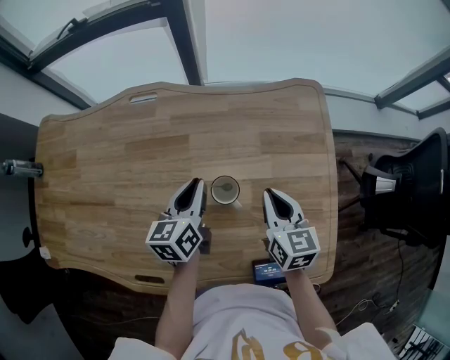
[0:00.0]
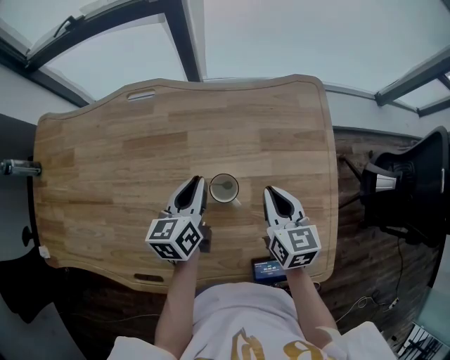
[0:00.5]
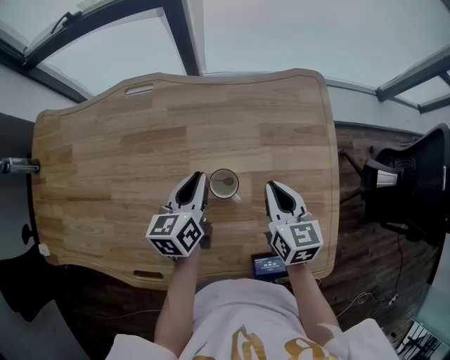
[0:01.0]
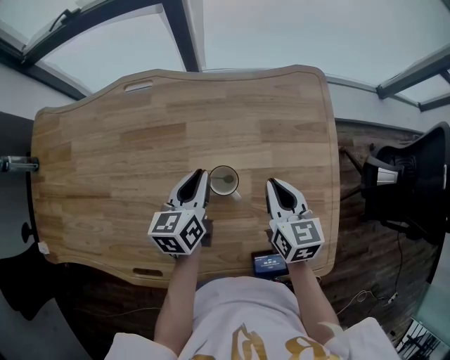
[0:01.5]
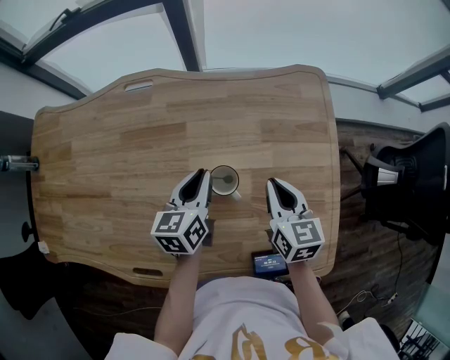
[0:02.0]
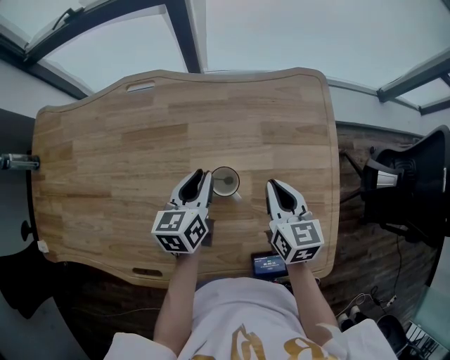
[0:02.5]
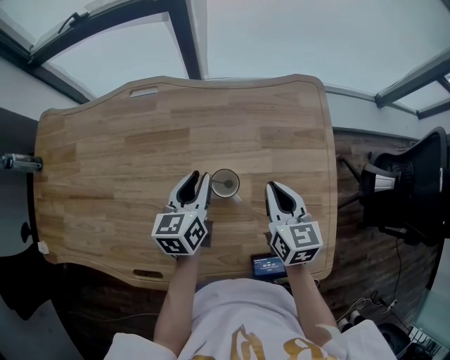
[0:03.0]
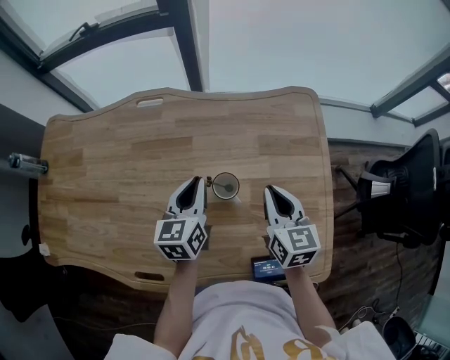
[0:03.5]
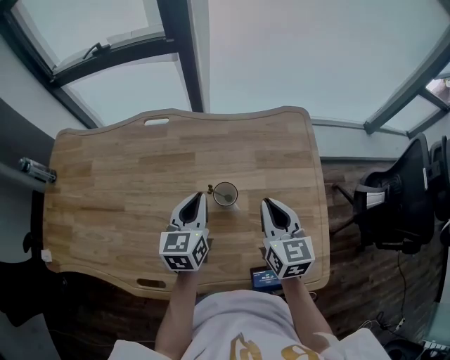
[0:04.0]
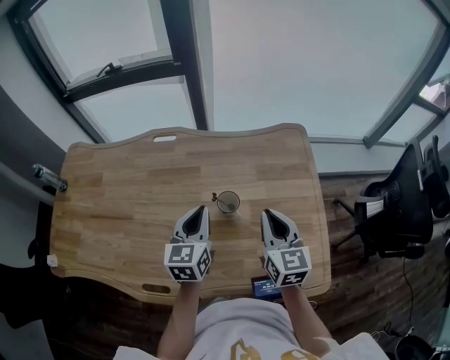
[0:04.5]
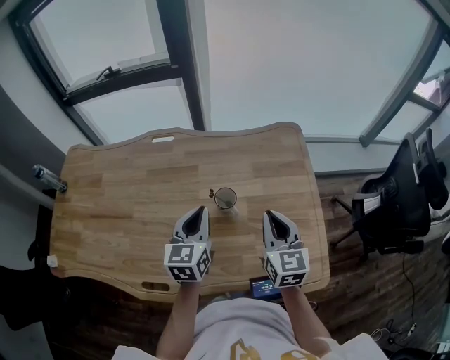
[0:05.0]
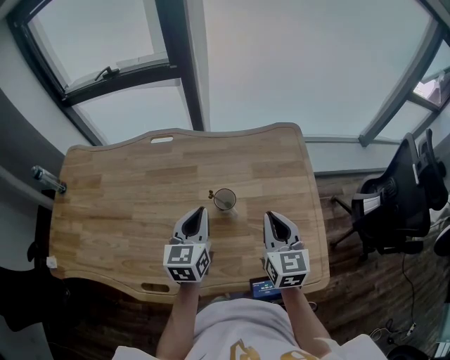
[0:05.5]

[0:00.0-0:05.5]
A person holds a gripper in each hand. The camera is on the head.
0:00.0 to 0:02.0: The grippers stay close to where they were, moving slightly.
0:02.0 to 0:03.5: The left gripper changes place by roughly 5 cm, while the right gripper ends up some 5 cm from where it was.
0:03.5 to 0:05.5: Both grippers travel together backward and upward, approximately 10 cm.

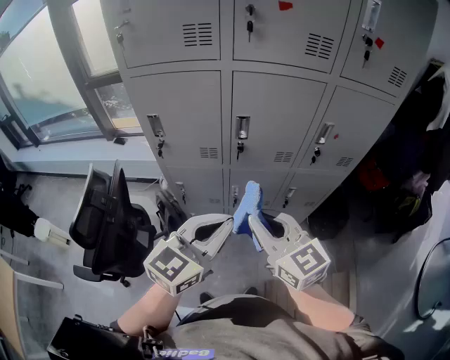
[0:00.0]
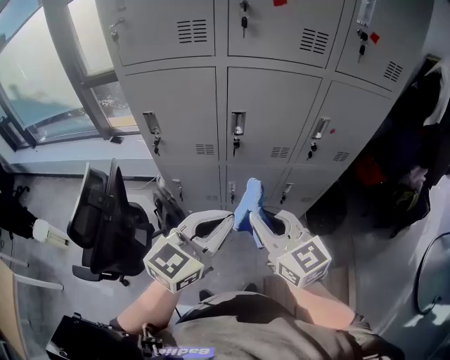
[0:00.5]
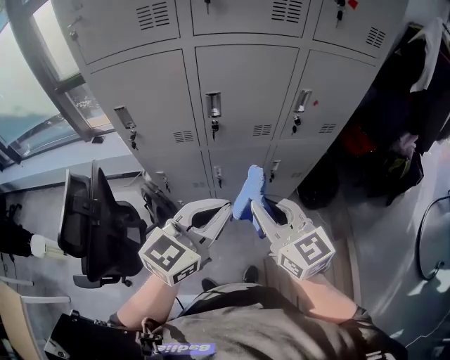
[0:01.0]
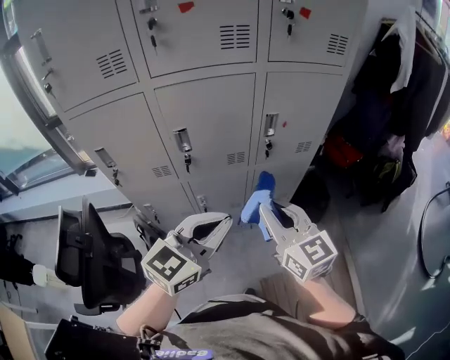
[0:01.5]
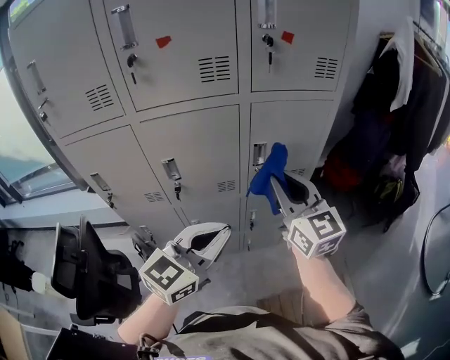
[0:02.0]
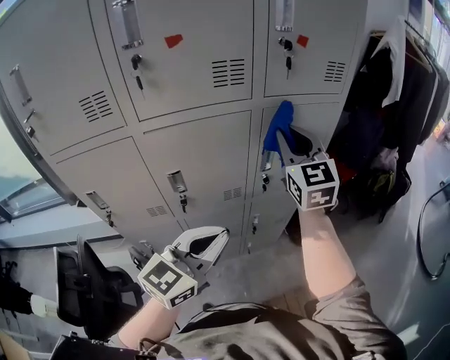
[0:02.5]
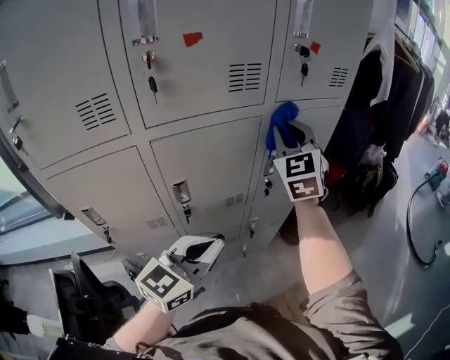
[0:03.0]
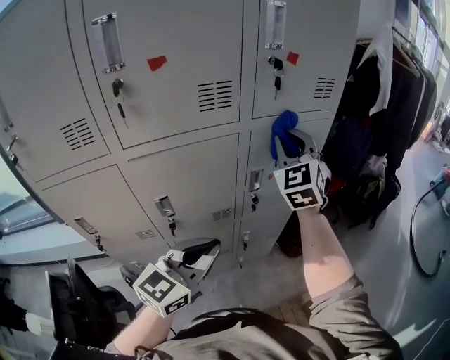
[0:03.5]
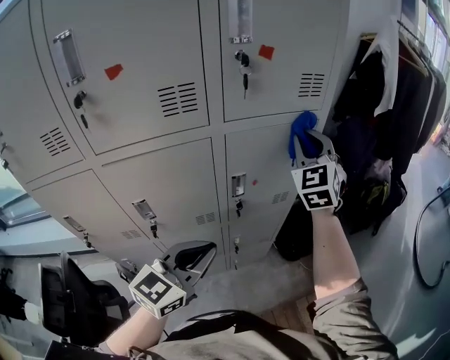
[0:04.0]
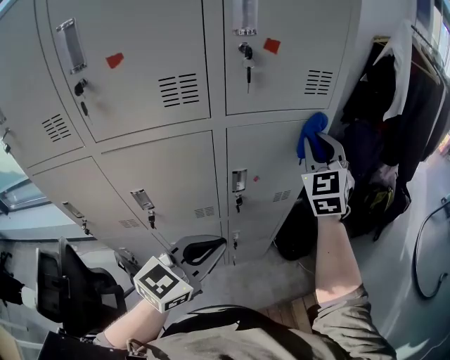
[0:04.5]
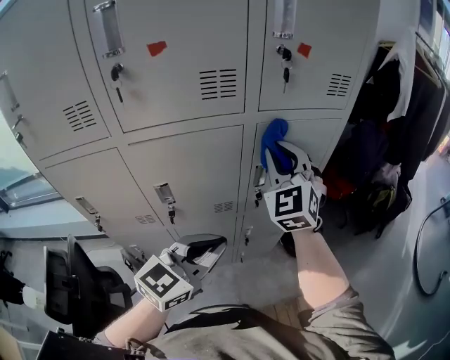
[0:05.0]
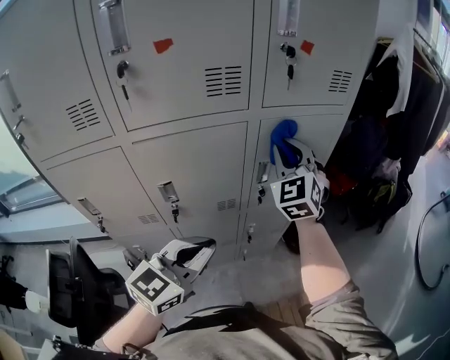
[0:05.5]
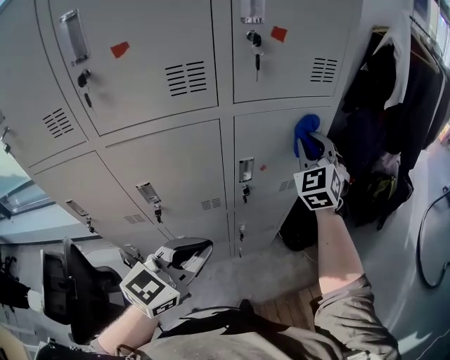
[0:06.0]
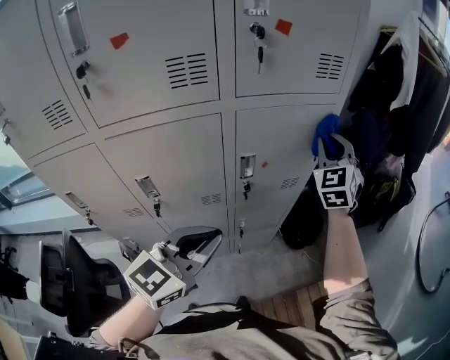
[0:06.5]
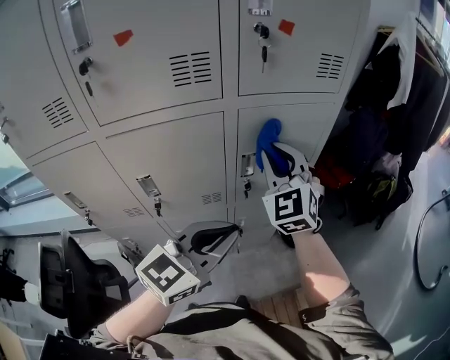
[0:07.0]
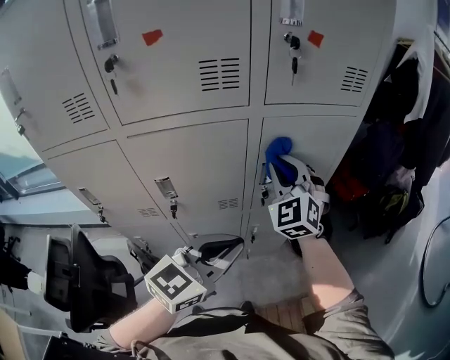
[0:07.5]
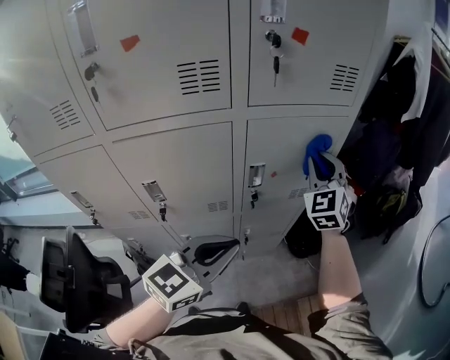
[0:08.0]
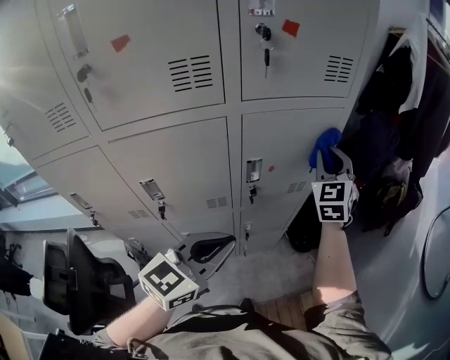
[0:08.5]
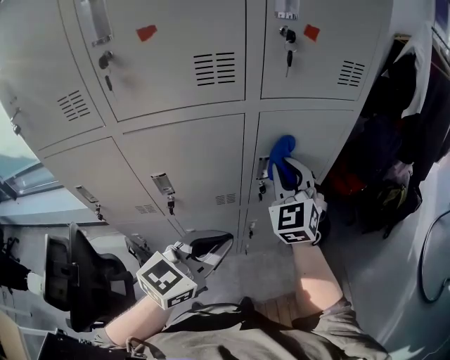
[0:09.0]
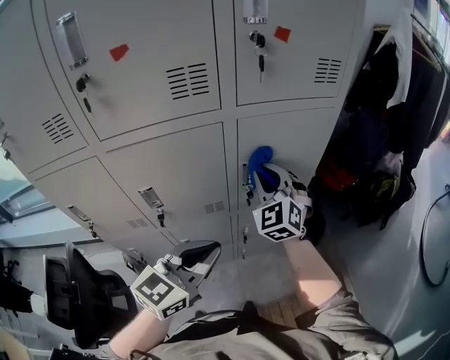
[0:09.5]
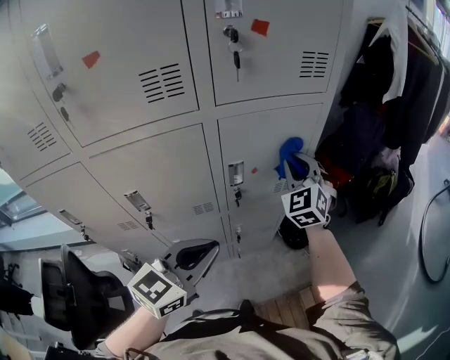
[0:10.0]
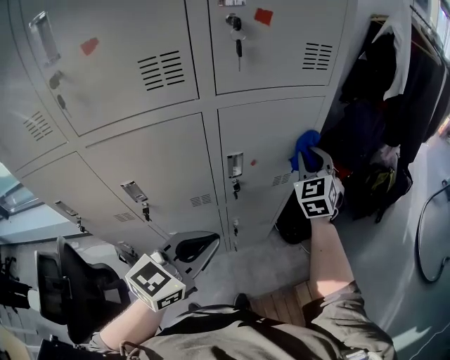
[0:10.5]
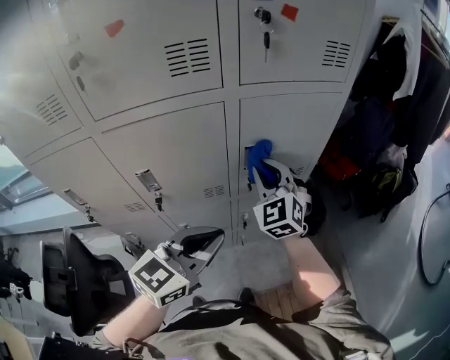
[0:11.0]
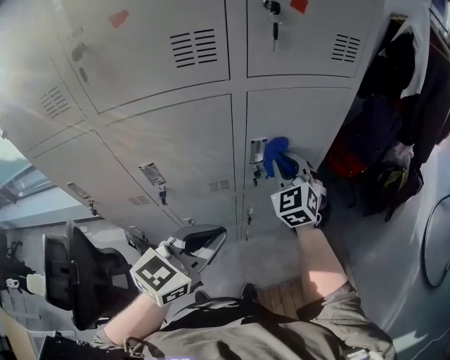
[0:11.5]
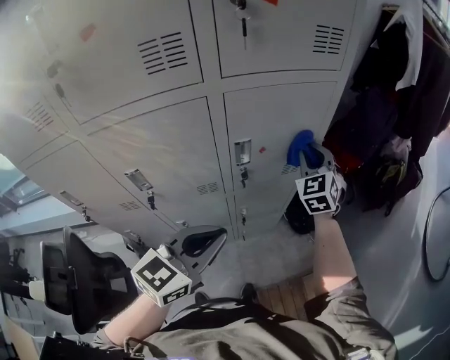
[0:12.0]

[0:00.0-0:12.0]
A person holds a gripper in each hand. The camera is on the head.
0:00.0 to 0:02.0: The right gripper goes approximately 30 cm to the right, forward and upward, and changes its angle by approximately 30 degrees. Meanwhile the left gripper moves to the right and forward, approximately 20 cm.
0:02.0 to 0:04.0: The right gripper shifts some 20 cm forward, and changes its angle by approximately 50 degrees, while the left gripper travels forward by about 10 cm, and moves roughly 10 cm to the left and comes back.
0:04.0 to 0:06.0: The left gripper moves some 5 cm to the left and comes back, while the right gripper shifts roughly 5 cm downward, and travels to the left and back again, approximately 10 cm each way.
0:06.0 to 0:08.0: The right gripper moves left and right over roughly 15 cm, changing direction 2 times. Meanwhile the left gripper moves about 5 cm.
0:08.0 to 0:10.0: The right gripper moves some 10 cm to the left and comes back.
0:10.0 to 0:12.0: The right gripper goes left and right, about 15 cm each way, reversing 2 times.

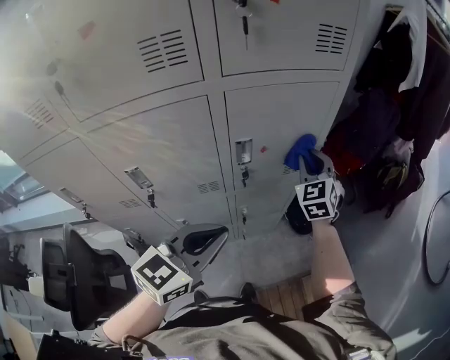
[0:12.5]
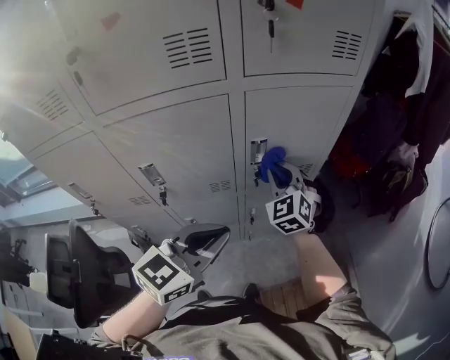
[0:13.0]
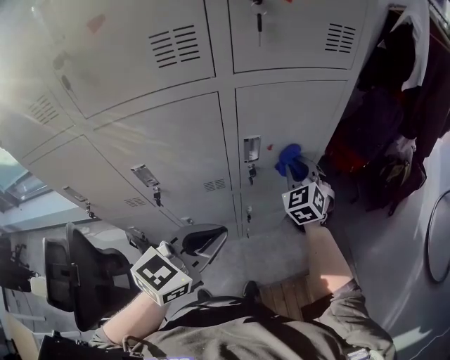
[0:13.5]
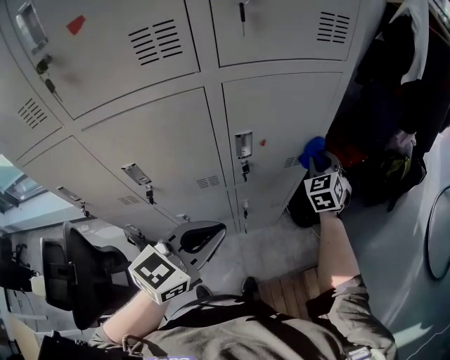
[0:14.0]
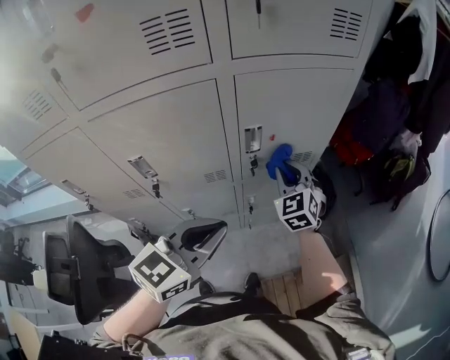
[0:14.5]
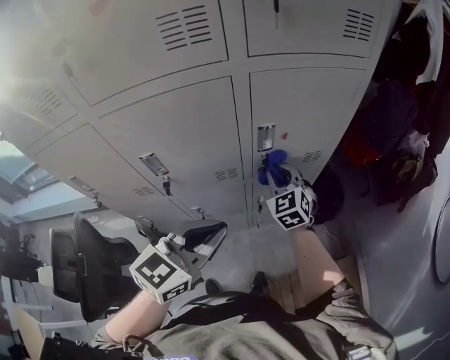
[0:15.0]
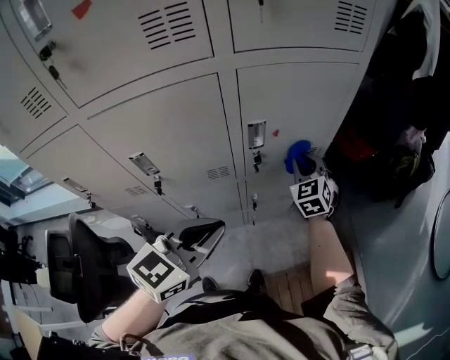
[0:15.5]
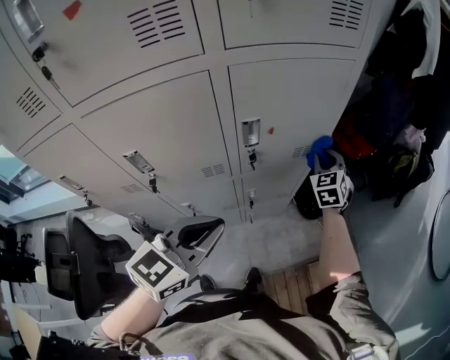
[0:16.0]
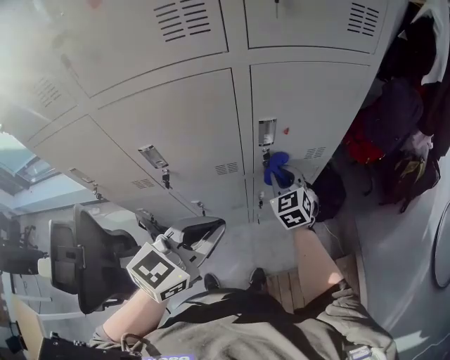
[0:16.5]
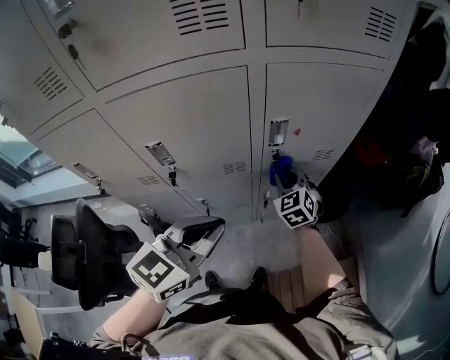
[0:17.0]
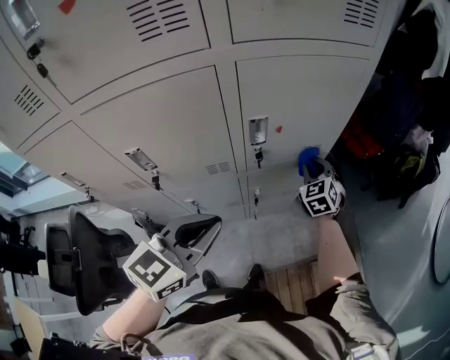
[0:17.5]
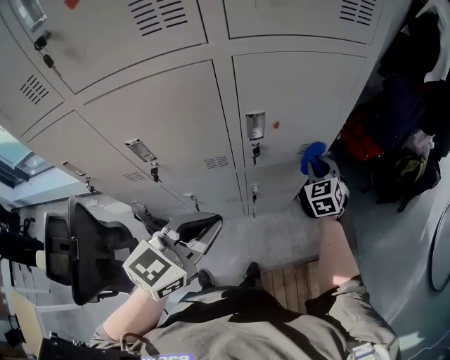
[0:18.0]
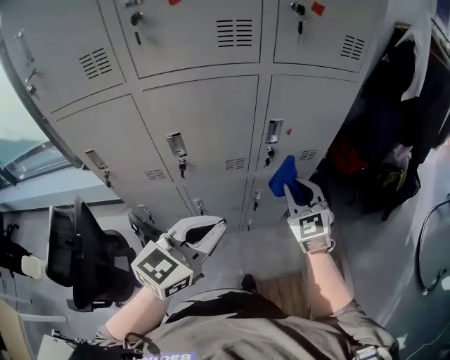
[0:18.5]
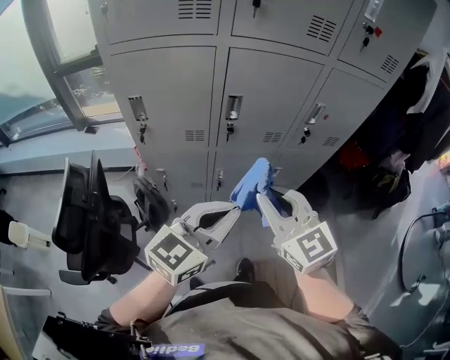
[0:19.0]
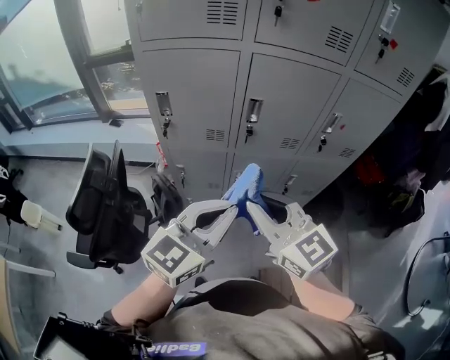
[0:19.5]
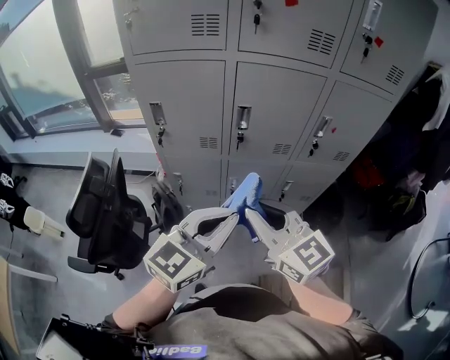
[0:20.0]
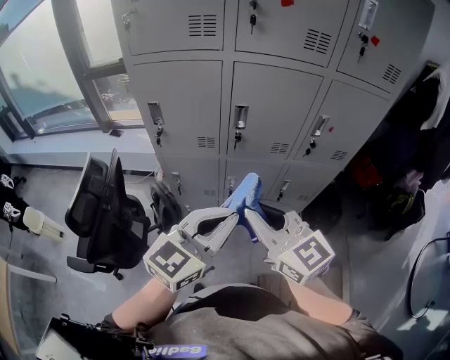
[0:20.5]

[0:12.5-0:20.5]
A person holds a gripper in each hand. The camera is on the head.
0:12.5 to 0:14.5: The right gripper swings left and right, some 15 cm each way, with 2 reversals.
0:14.5 to 0:16.5: The right gripper goes left and right, about 20 cm each way, reversing 2 times.
0:16.5 to 0:18.5: The right gripper goes roughly 15 cm backward and upward. Meanwhile the left gripper goes approximately 10 cm backward.
0:18.5 to 0:20.5: The left gripper moves backward and to the left, approximately 15 cm. The right gripper travels to the left and backward by some 35 cm, and turns by approximately 40 degrees.

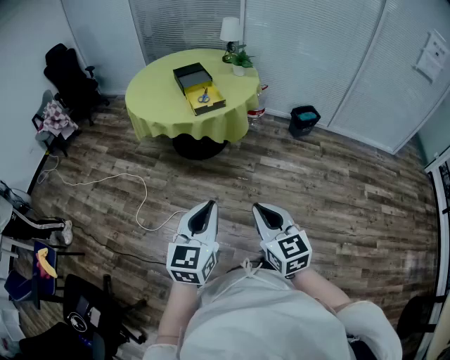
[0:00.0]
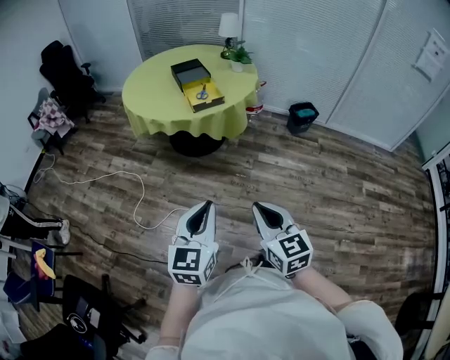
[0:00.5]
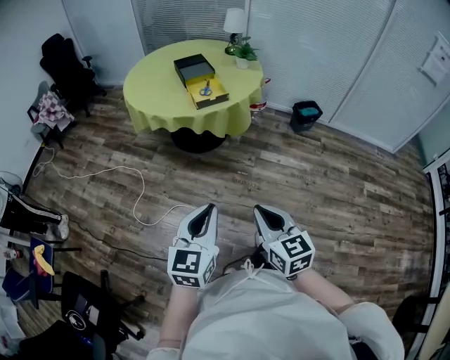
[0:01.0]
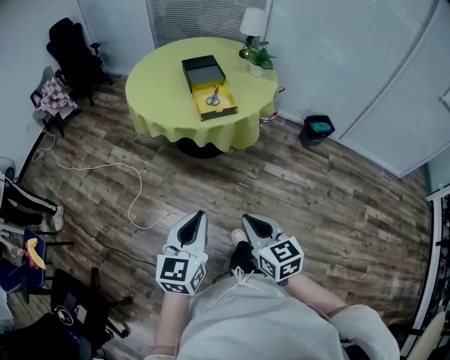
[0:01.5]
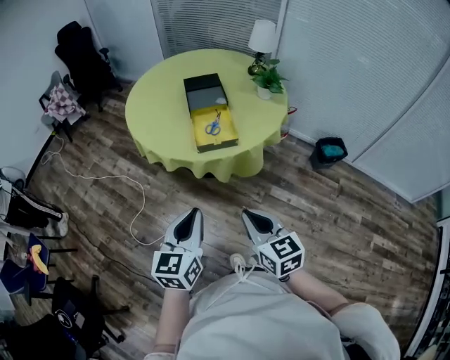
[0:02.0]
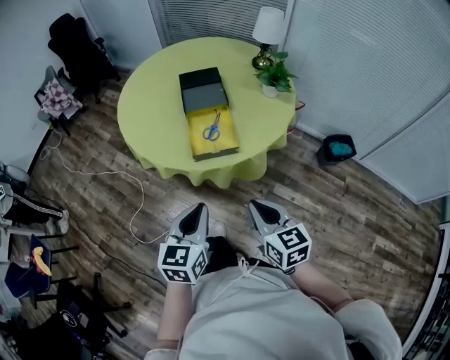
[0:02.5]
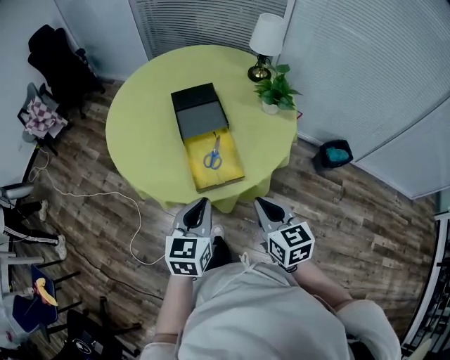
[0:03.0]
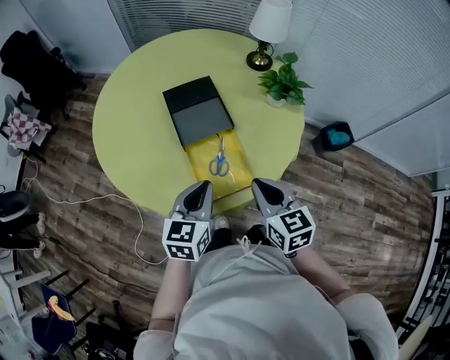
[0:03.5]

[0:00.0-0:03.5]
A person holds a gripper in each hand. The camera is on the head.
0:00.0 to 0:02.0: Both grippers travel together forward, some 35 cm.
0:02.0 to 0:03.5: Both grippers are carried forward, approximately 40 cm.
